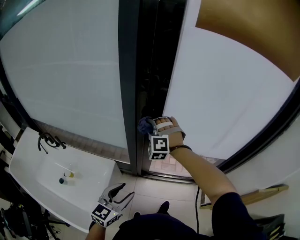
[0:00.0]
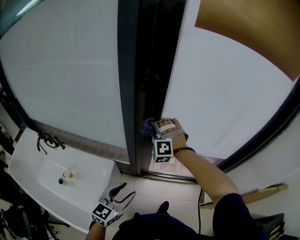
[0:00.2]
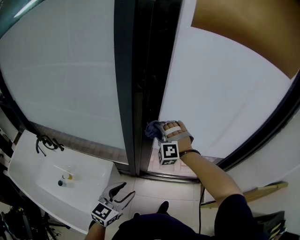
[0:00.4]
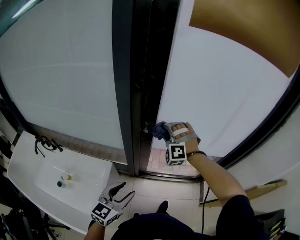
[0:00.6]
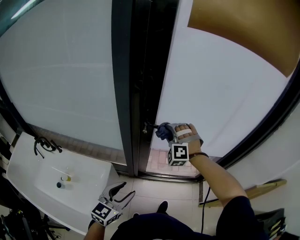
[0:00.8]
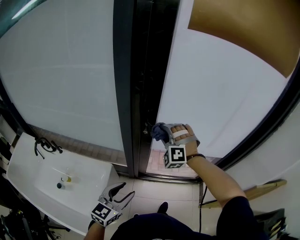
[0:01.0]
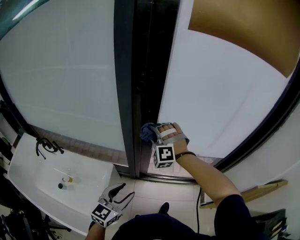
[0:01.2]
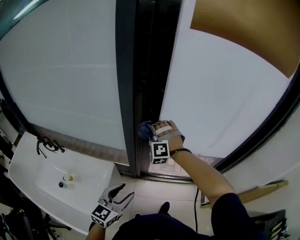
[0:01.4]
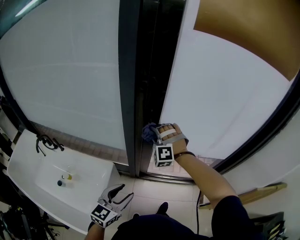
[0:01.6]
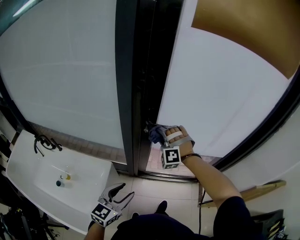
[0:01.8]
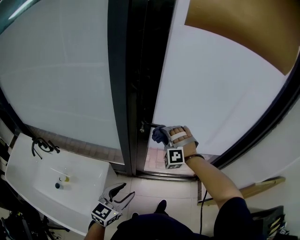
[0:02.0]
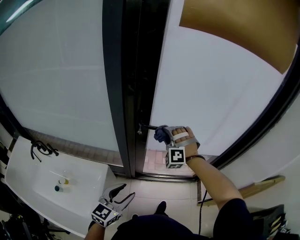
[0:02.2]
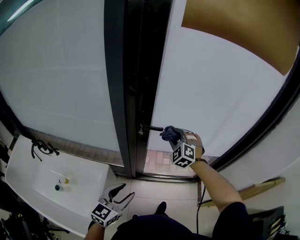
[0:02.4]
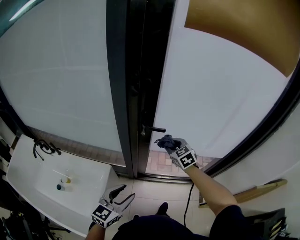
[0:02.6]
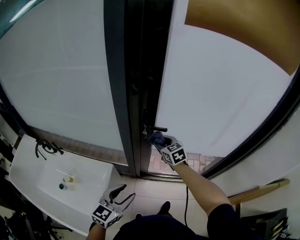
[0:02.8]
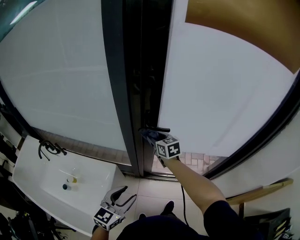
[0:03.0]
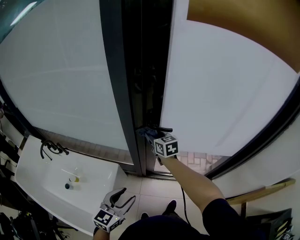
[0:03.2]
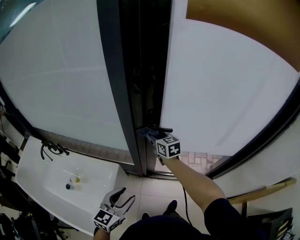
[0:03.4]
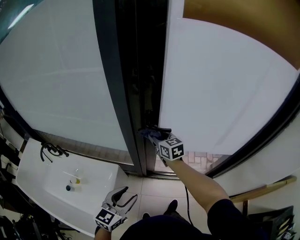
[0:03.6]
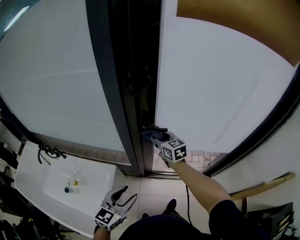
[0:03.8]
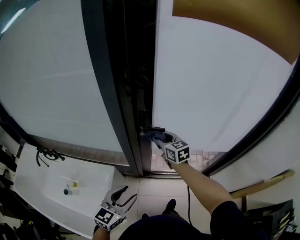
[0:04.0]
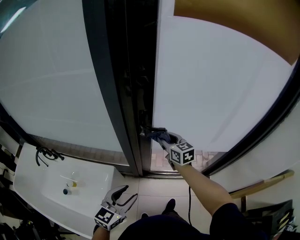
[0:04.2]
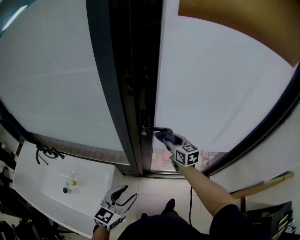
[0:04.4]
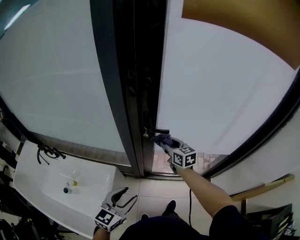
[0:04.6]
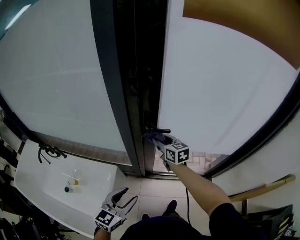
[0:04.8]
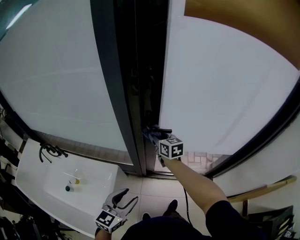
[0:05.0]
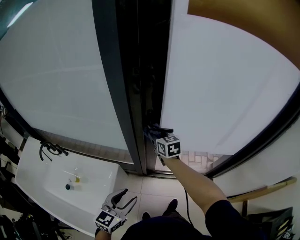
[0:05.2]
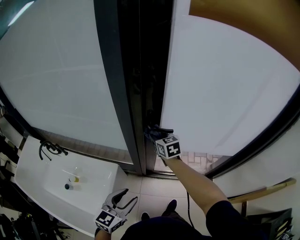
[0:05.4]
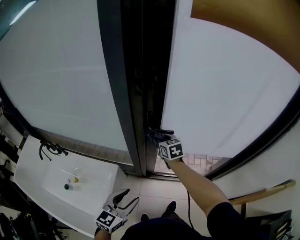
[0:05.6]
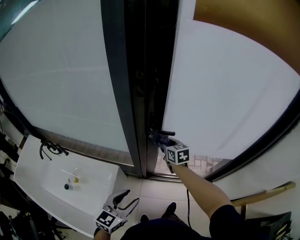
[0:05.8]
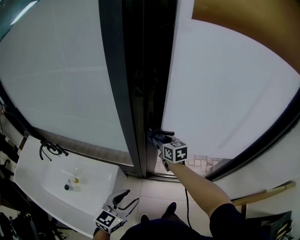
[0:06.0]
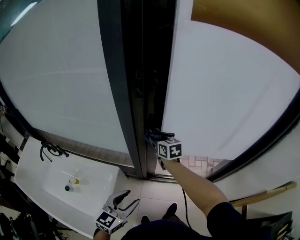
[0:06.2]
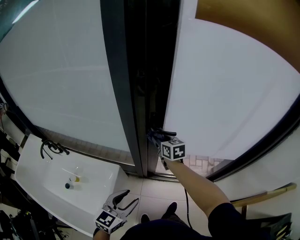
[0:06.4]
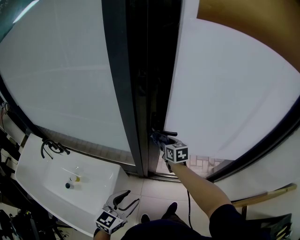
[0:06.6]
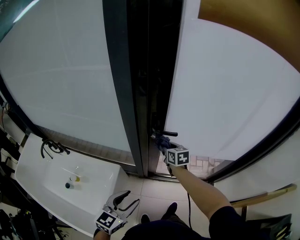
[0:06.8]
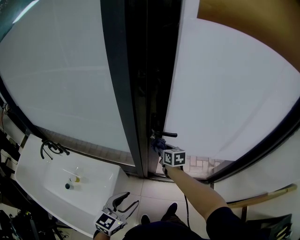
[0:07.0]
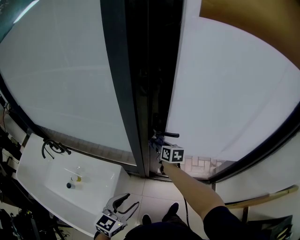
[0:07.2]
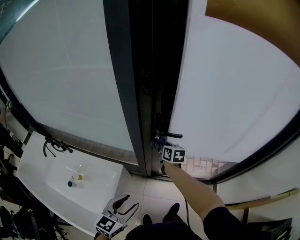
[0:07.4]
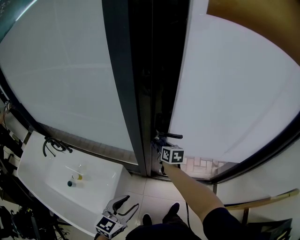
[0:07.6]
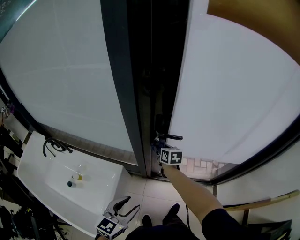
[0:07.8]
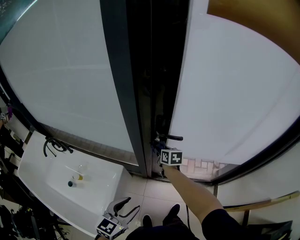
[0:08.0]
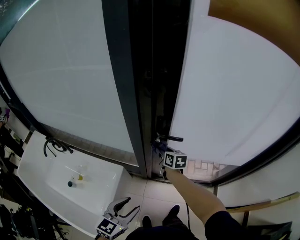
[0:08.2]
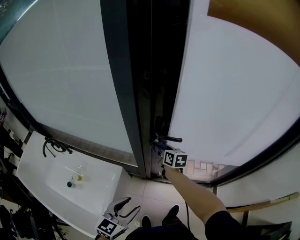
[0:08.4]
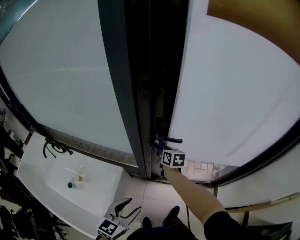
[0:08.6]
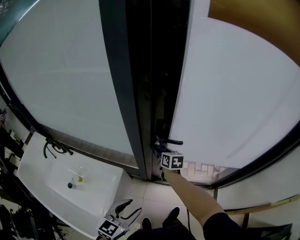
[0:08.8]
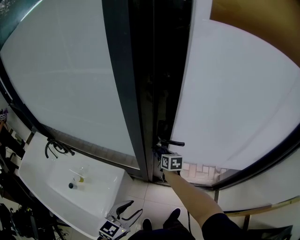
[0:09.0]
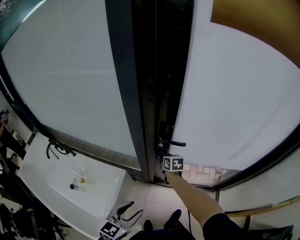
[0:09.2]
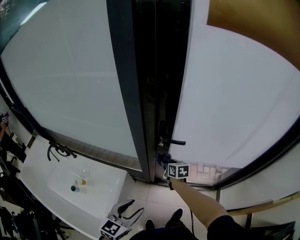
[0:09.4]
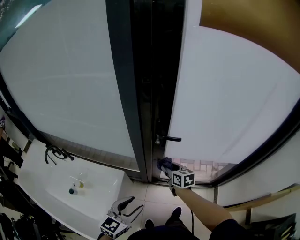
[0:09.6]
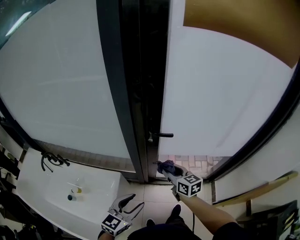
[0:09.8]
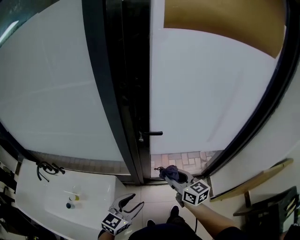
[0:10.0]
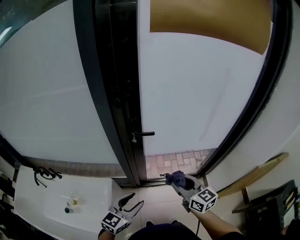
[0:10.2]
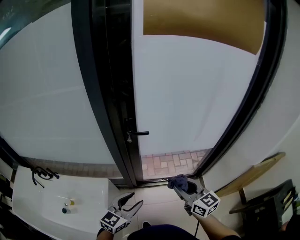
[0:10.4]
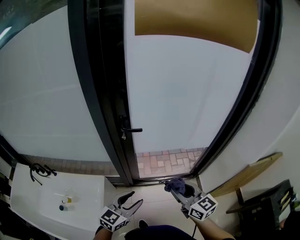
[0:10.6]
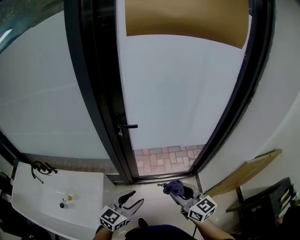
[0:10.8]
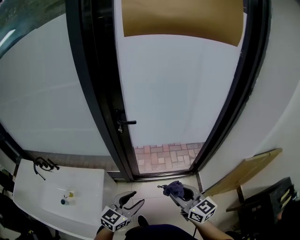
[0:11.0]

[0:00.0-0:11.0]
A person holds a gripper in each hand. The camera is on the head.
0:00.0 to 0:01.6: The right gripper goes to the right and returns, about 10 cm each way.
0:01.6 to 0:03.2: The right gripper shifts roughly 5 cm forward, moves roughly 15 cm to the right and comes back, and twists approximately 100 degrees clockwise, seen from behind.
0:03.2 to 0:04.8: The right gripper shifts about 5 cm to the right.
0:04.8 to 0:06.2: There are only small adjustments of the grippers.
0:06.2 to 0:07.8: The right gripper shifts about 10 cm downward.
0:07.8 to 0:09.4: The right gripper moves roughly 5 cm.
0:09.4 to 0:11.0: The left gripper goes about 20 cm to the right and backward, and turns by roughly 20 degrees, while the right gripper goes approximately 50 cm backward, to the right and upward, and swivels roughly 30 degrees.

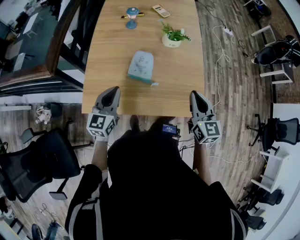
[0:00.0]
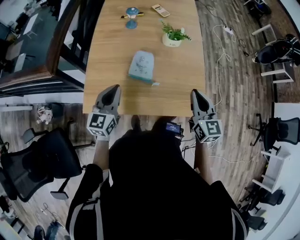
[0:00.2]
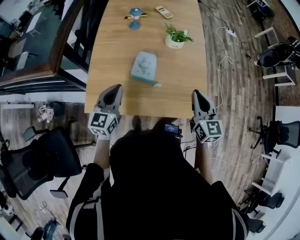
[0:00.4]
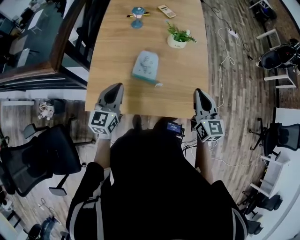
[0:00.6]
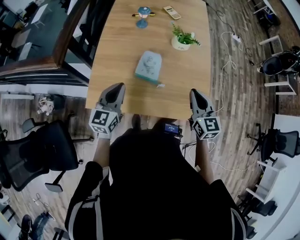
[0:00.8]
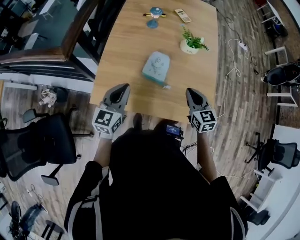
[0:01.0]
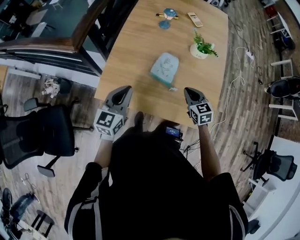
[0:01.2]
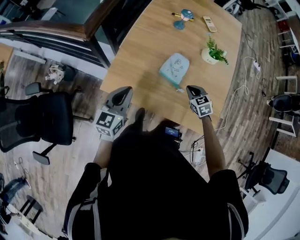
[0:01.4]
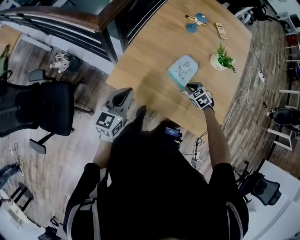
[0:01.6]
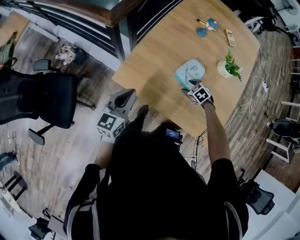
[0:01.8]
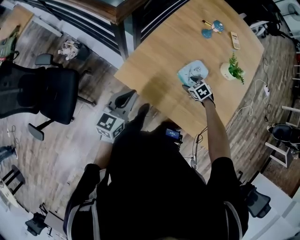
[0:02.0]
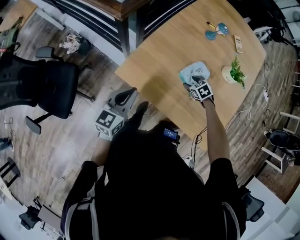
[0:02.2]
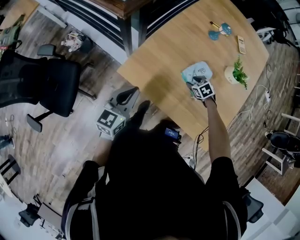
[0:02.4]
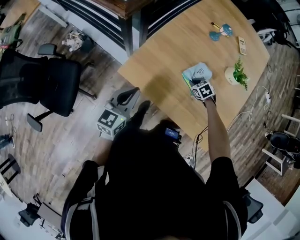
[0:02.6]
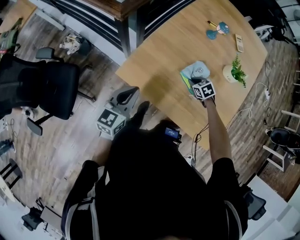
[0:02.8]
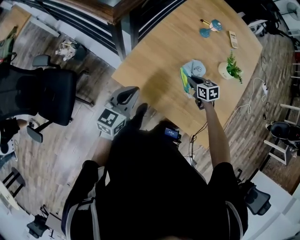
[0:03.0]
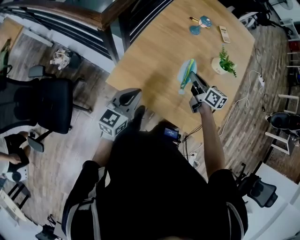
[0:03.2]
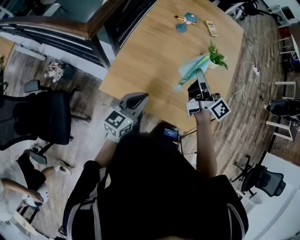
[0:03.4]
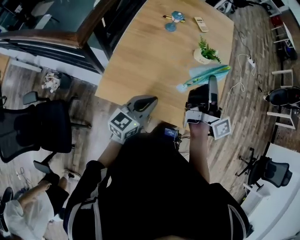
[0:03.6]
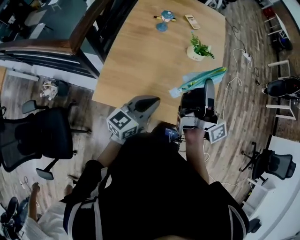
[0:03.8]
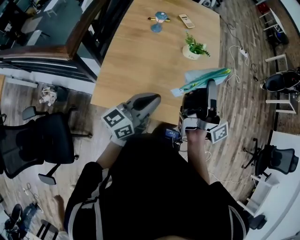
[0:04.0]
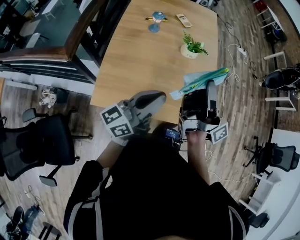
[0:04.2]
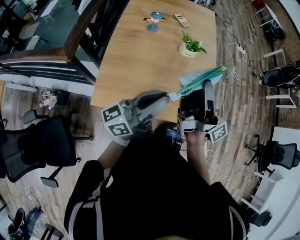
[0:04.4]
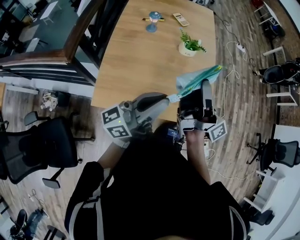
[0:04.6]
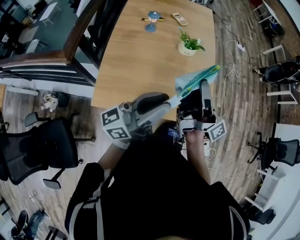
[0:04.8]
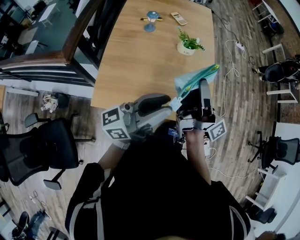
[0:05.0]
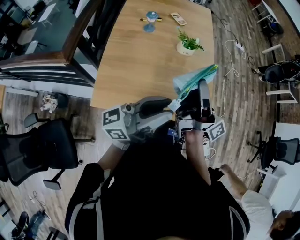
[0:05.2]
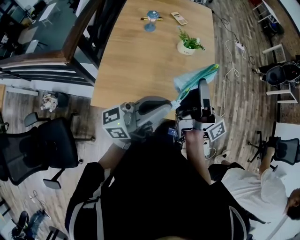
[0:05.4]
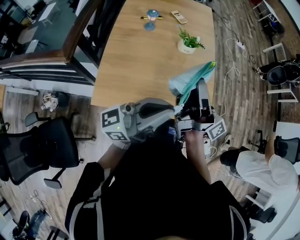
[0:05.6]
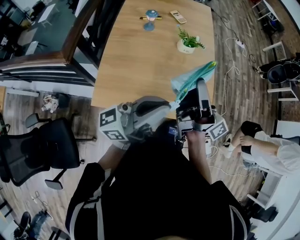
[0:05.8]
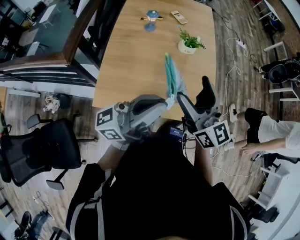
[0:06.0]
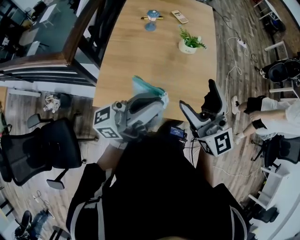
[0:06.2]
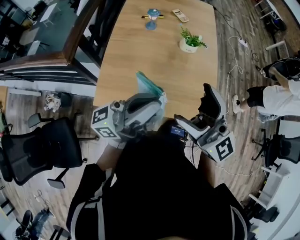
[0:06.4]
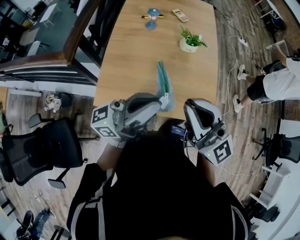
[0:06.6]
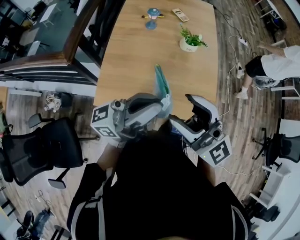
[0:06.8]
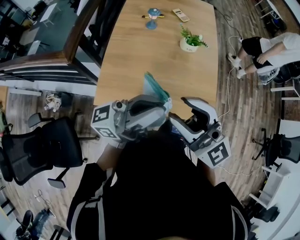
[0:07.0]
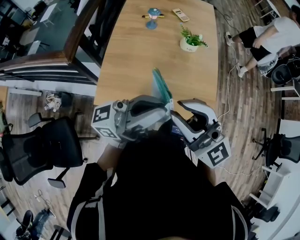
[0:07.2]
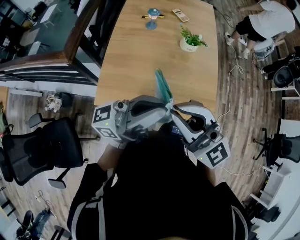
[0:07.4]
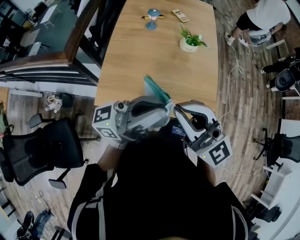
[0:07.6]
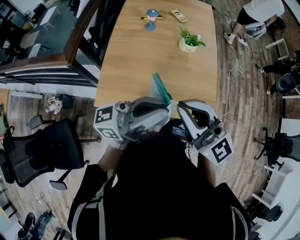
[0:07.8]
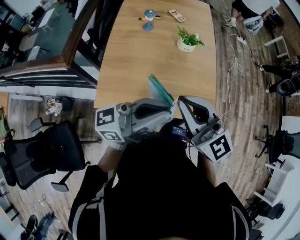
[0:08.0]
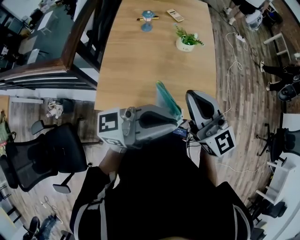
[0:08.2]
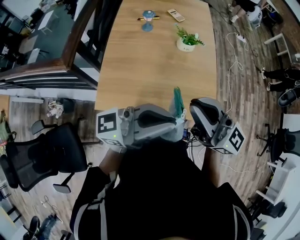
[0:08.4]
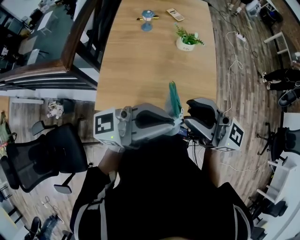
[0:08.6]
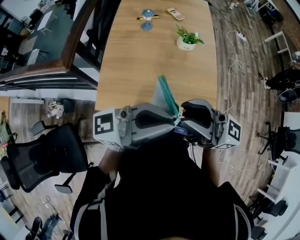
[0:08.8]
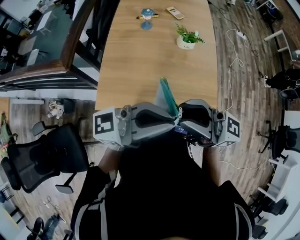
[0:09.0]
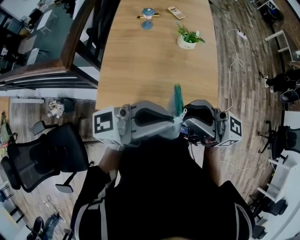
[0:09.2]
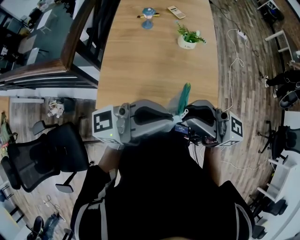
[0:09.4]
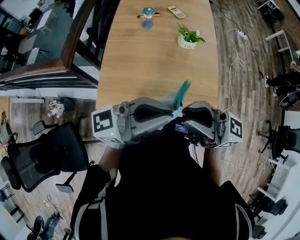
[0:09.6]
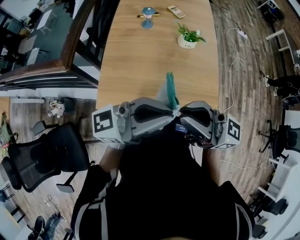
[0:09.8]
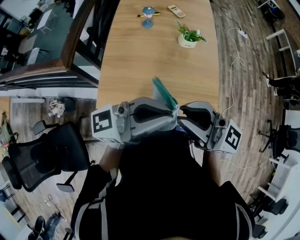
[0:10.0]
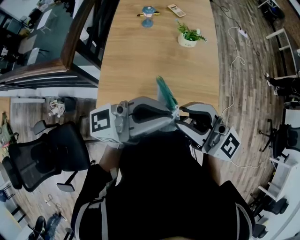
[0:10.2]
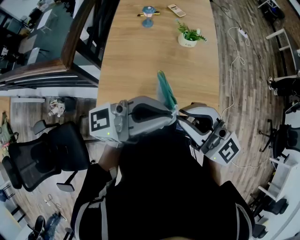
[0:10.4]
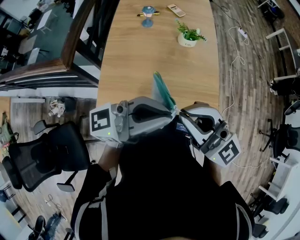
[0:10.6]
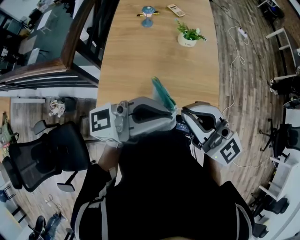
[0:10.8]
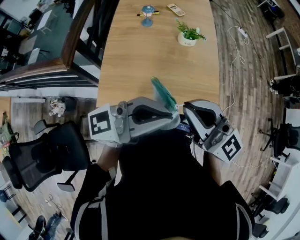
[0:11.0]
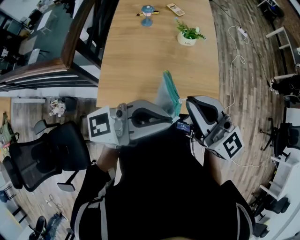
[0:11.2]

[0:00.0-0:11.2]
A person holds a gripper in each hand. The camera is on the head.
0:00.0 to 0:01.6: The left gripper moves some 10 cm. The right gripper is displaced downward by some 25 cm, and points its fingers some 50 degrees further downward.
0:01.6 to 0:03.2: The right gripper is displaced upward and forward by approximately 15 cm, angles its fingers upward, by roughly 40 degrees, and opens and closes again.
0:03.2 to 0:04.8: The two grippers go about 25 cm upward. The right gripper angles its fingers upward, by roughly 50 degrees. The left gripper angles its fingers upward, by roughly 40 degrees.
0:04.8 to 0:06.4: The right gripper travels backward by some 10 cm, twists approximately 70 degrees counterclockwise, seen from behind, and opens up.
0:06.4 to 0:08.0: The right gripper closes up.
0:08.0 to 0:09.6: The right gripper rotates about 50 degrees.
0:09.6 to 0:11.2: The right gripper rotates some 40 degrees.

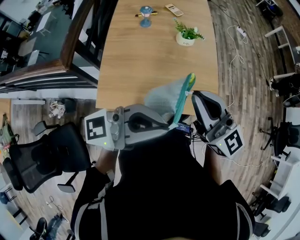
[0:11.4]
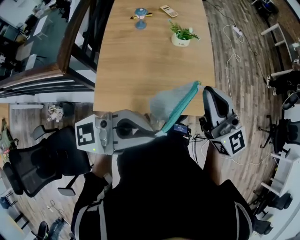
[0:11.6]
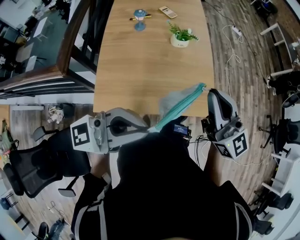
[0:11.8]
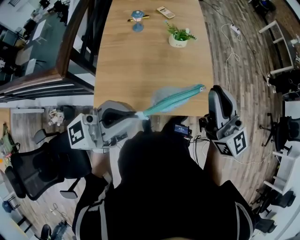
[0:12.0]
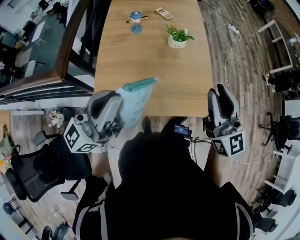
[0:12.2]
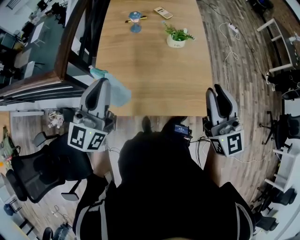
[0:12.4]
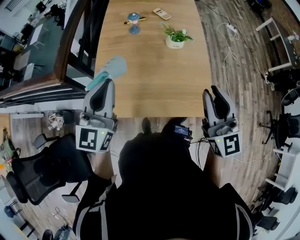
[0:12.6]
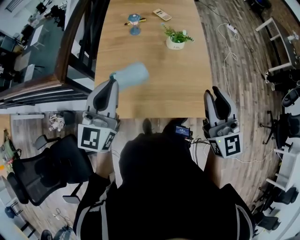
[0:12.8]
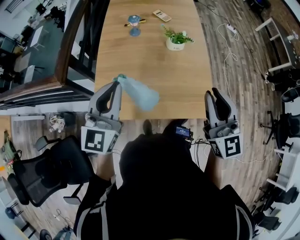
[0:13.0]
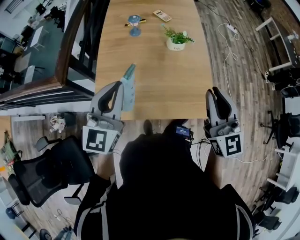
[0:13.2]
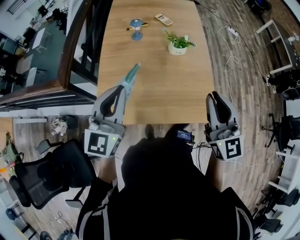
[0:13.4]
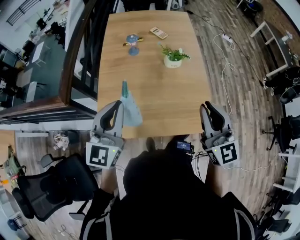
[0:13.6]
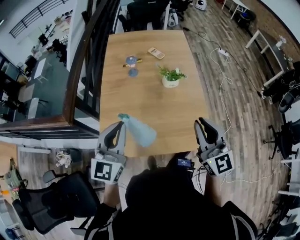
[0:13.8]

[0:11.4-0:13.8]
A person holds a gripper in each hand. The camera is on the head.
0:11.4 to 0:12.6: The left gripper moves some 20 cm, and swivels approximately 70 degrees. Meanwhile the right gripper moves about 10 cm, and changes its angle by about 20 degrees.
0:12.6 to 0:13.8: The grippers make only small movements.
